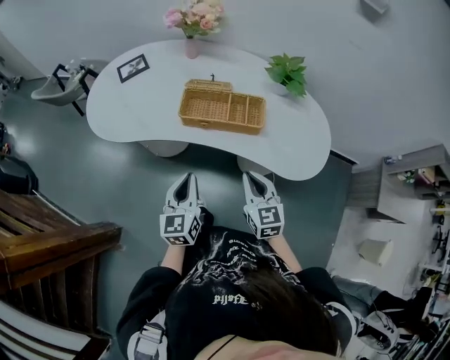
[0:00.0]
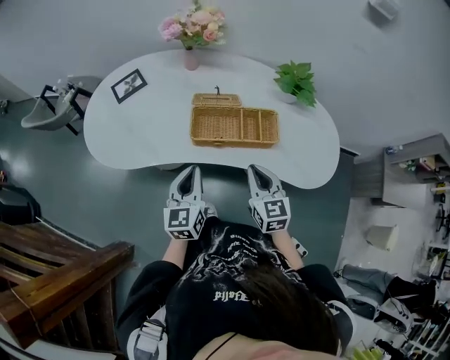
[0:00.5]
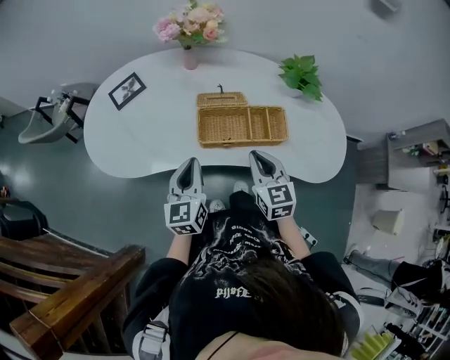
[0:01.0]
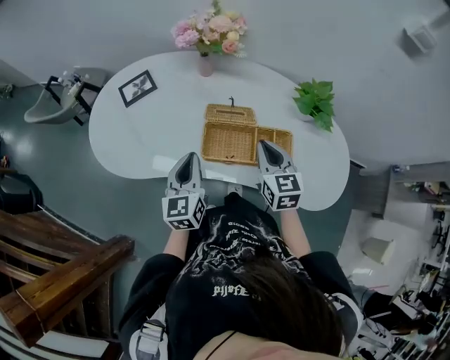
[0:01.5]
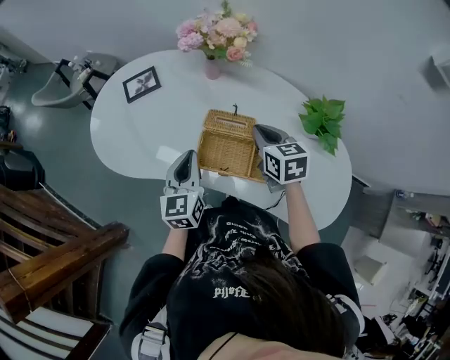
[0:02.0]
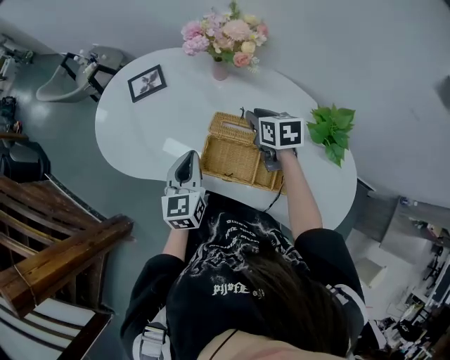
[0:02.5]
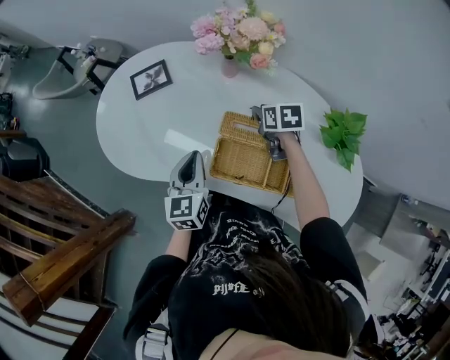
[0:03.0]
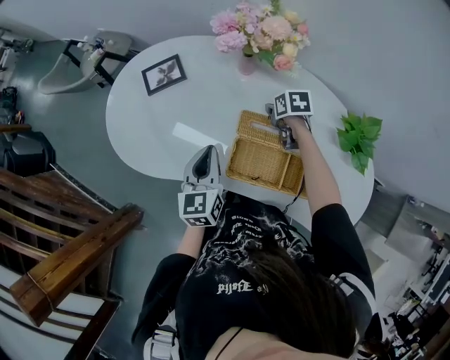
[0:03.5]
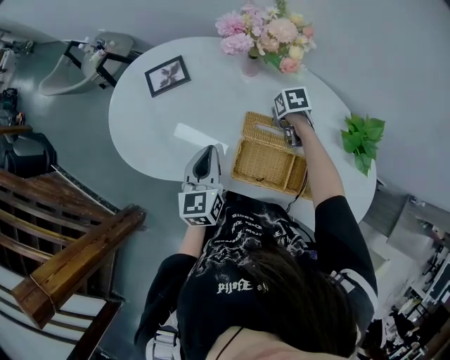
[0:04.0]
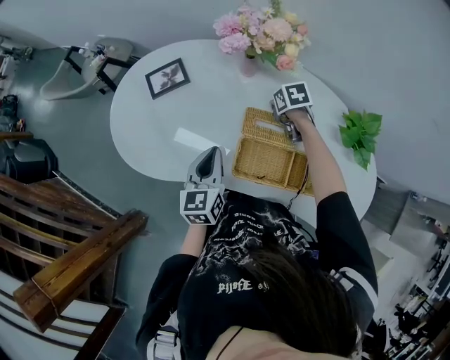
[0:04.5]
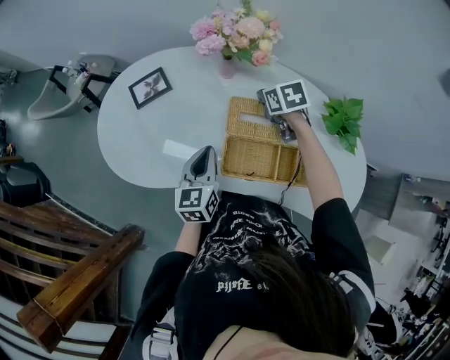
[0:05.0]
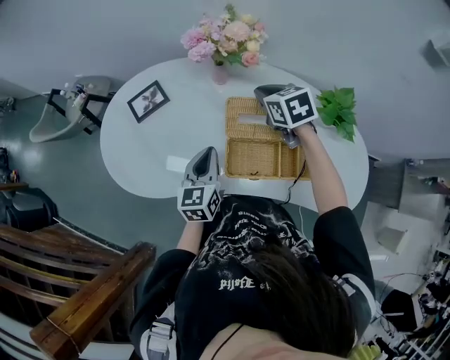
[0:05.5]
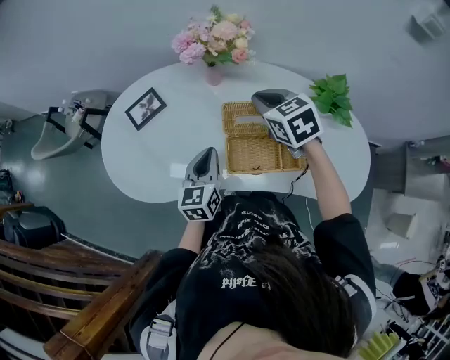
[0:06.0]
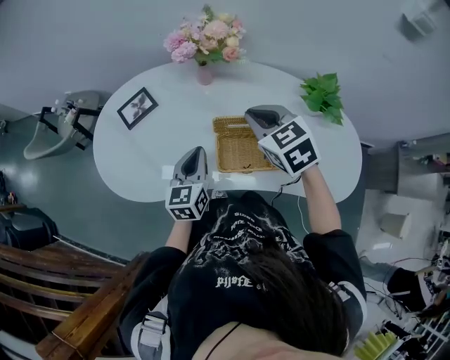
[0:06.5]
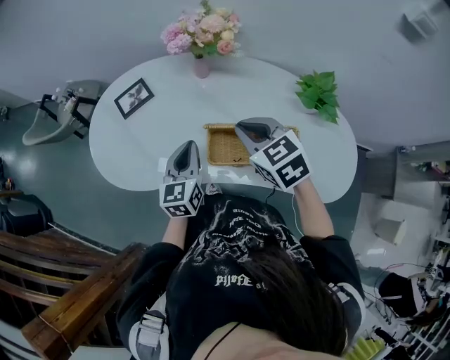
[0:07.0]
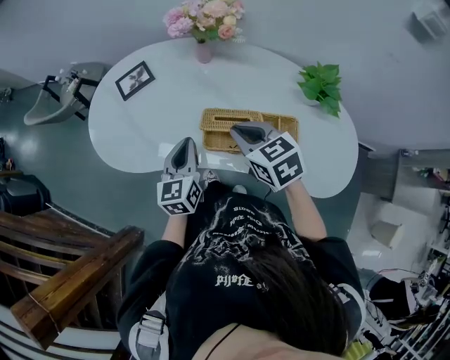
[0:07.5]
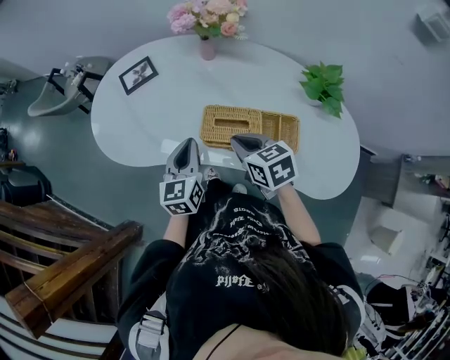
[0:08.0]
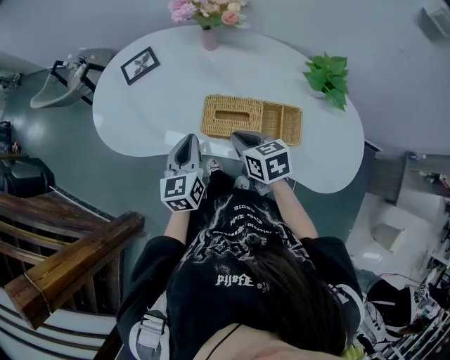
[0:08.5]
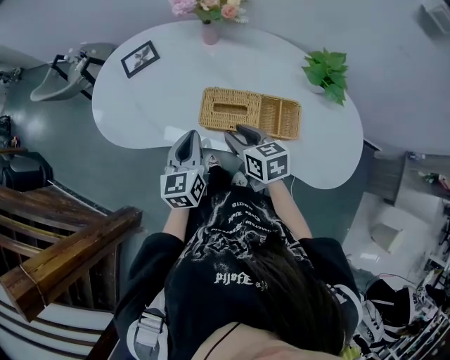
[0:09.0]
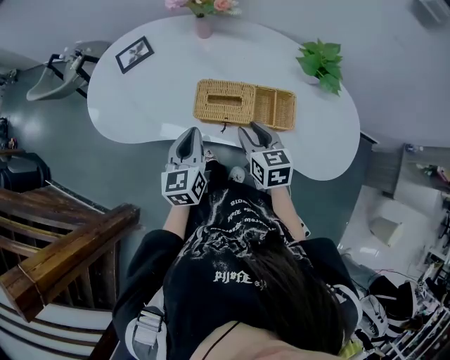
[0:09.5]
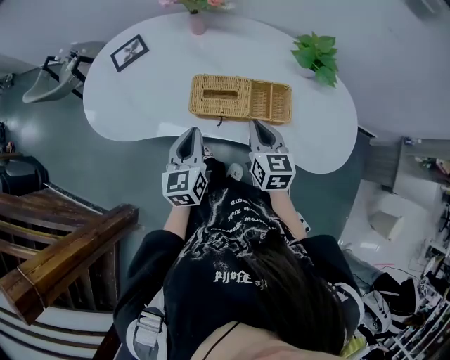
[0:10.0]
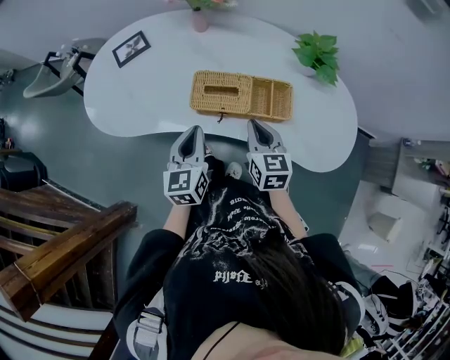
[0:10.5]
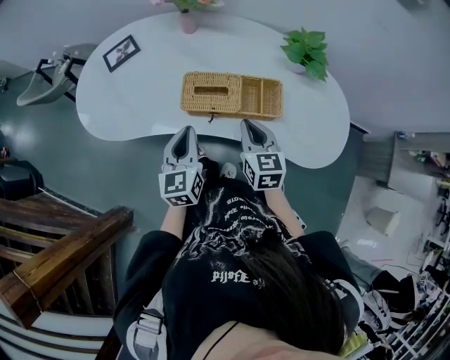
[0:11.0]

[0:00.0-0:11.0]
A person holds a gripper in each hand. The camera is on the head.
0:00.0 to 0:02.0: The two grippers go roughly 30 cm forward.
0:02.0 to 0:03.5: The left gripper travels forward by approximately 5 cm, while the right gripper moves forward and downward, about 20 cm, turns by approximately 30 degrees, and opens up.
0:03.5 to 0:05.5: The right gripper travels upward by about 20 cm, turns by some 30 degrees, and closes its fingers.
0:05.5 to 0:07.5: The left gripper travels backward by some 5 cm. The right gripper is displaced backward by approximately 20 cm.
0:07.5 to 0:09.0: The right gripper goes roughly 10 cm downward and backward, and opens its fingers. The left gripper travels backward by some 5 cm.
0:09.0 to 0:11.0: The left gripper ends up approximately 5 cm from where it was. The right gripper shifts roughly 10 cm to the right and backward, changes its angle by some 30 degrees, and closes up.

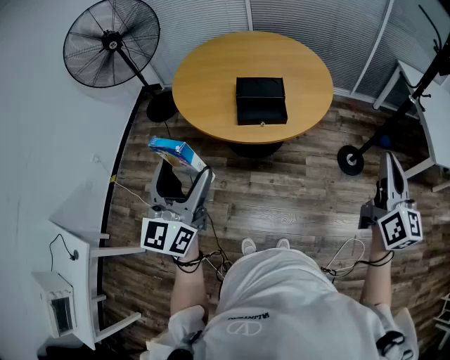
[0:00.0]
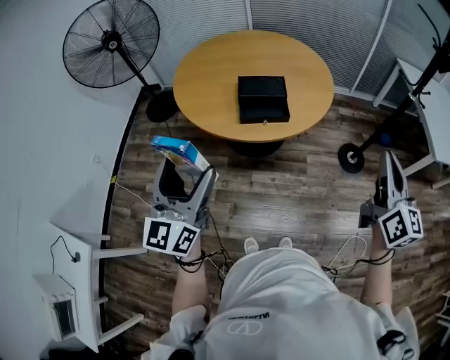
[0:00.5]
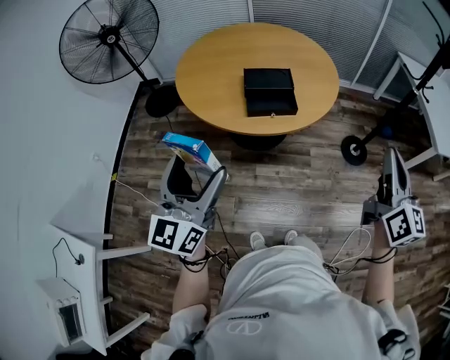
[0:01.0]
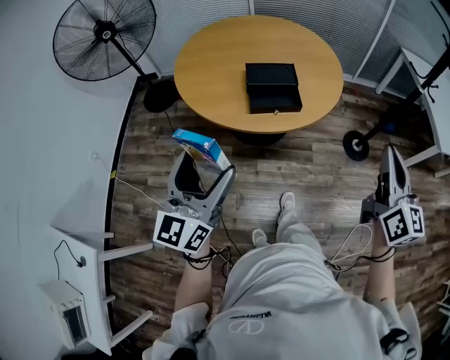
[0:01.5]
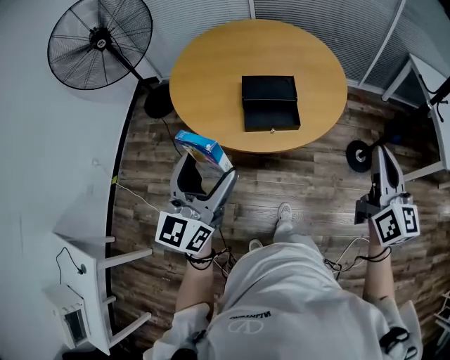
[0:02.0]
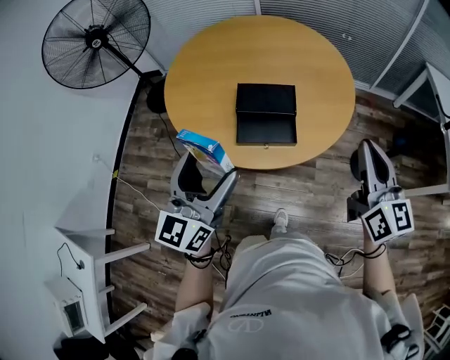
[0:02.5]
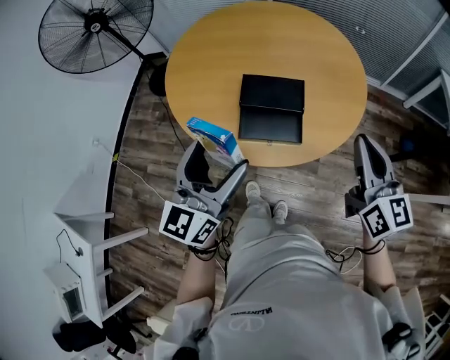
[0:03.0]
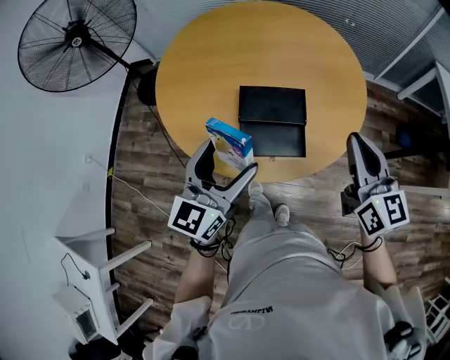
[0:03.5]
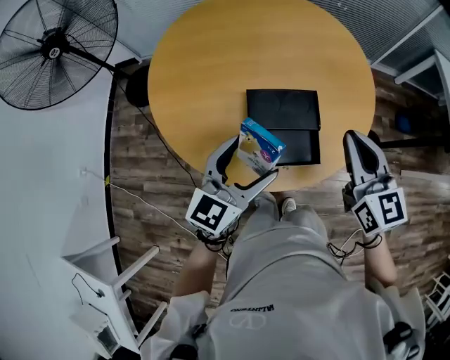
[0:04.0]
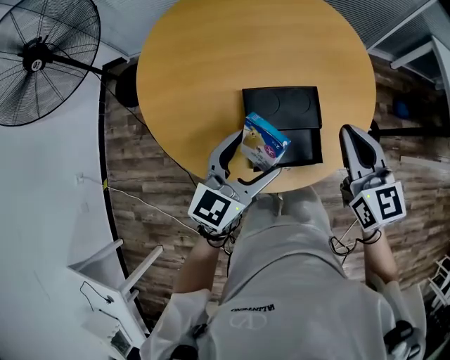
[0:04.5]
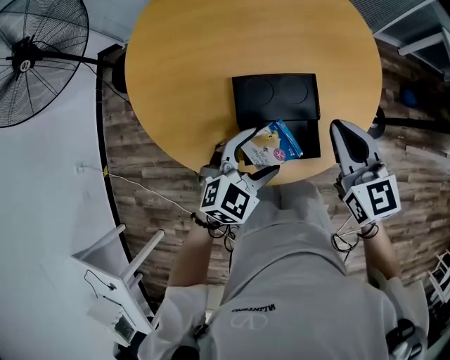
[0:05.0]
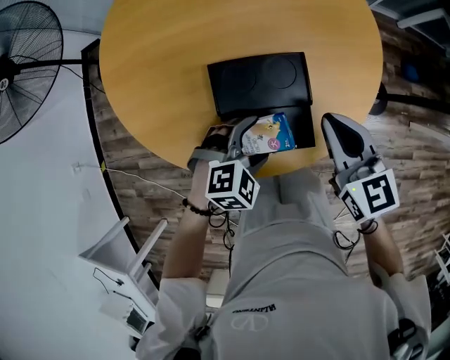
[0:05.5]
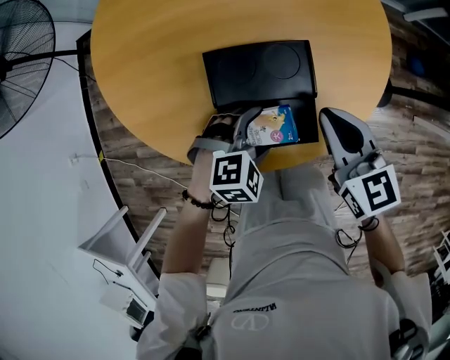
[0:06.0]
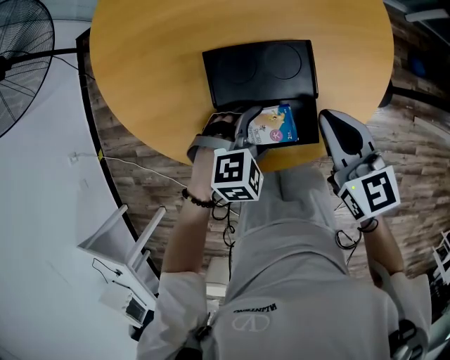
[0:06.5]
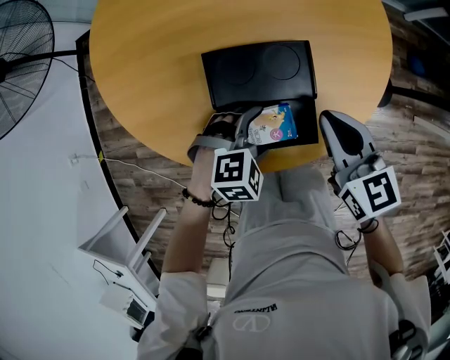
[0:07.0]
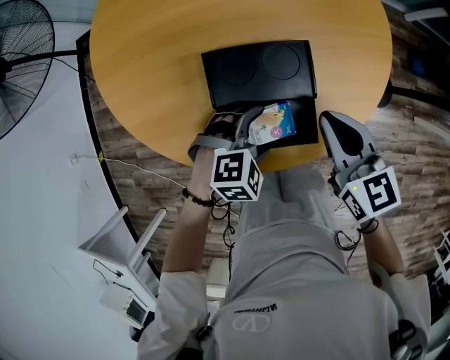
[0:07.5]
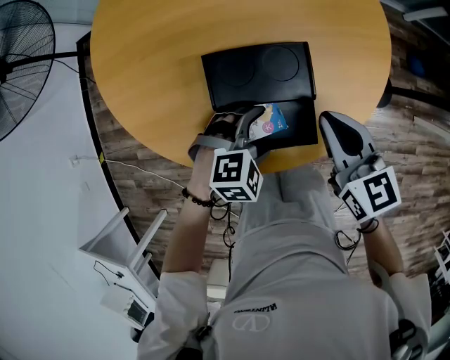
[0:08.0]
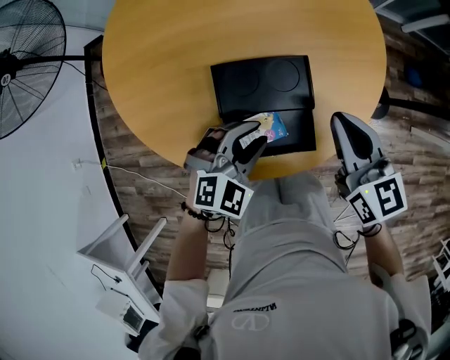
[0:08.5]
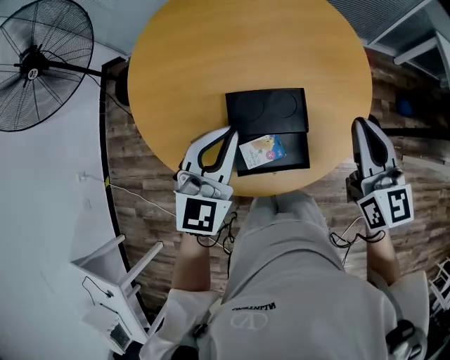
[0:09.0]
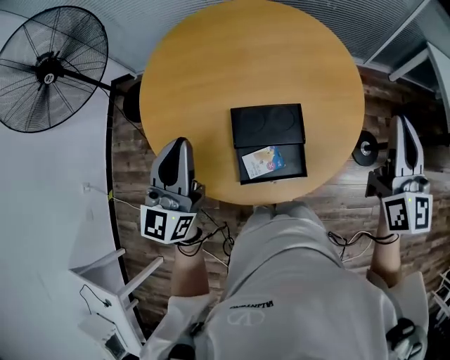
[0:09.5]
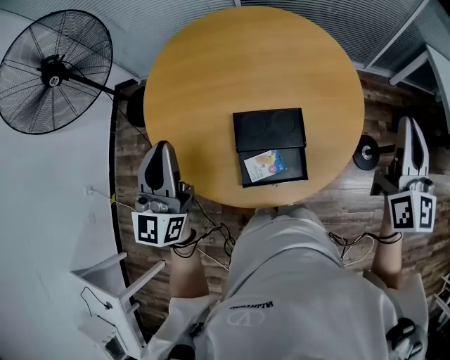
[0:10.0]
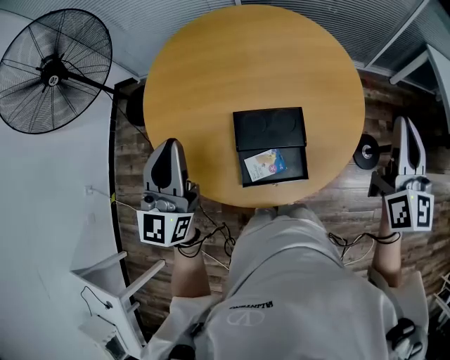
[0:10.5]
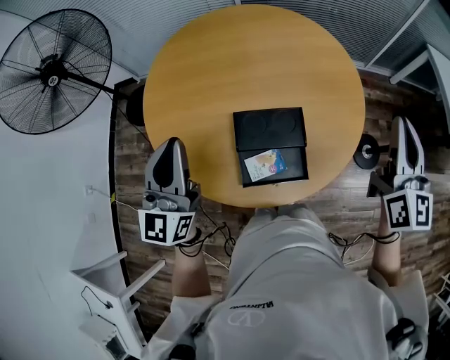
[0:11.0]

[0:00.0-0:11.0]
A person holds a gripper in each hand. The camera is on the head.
0:00.0 to 0:02.0: The right gripper is displaced forward and to the left by roughly 15 cm. The left gripper travels forward by some 15 cm.
0:02.0 to 0:03.5: The two grippers go roughly 25 cm forward.
0:03.5 to 0:05.5: The right gripper goes about 20 cm downward, forward and to the left, while the left gripper goes roughly 25 cm downward, and tilts its fingers some 50 degrees downward.
0:05.5 to 0:07.5: There are only small adjustments of the grippers.
0:07.5 to 0:09.0: The right gripper shifts approximately 15 cm upward, and turns by roughly 20 degrees, while the left gripper moves upward, some 25 cm, tilts its fingers some 50 degrees upward, and closes its fingers.
0:09.0 to 0:11.0: The left gripper heads to the left and upward, covering about 15 cm, and swivels approximately 40 degrees. Meanwhile the right gripper goes roughly 15 cm upward and to the right, and changes its angle by about 20 degrees.

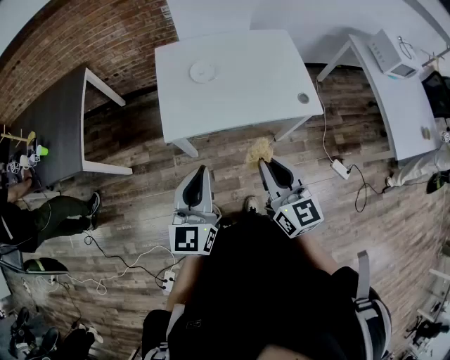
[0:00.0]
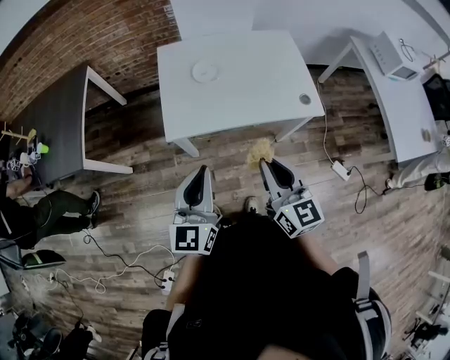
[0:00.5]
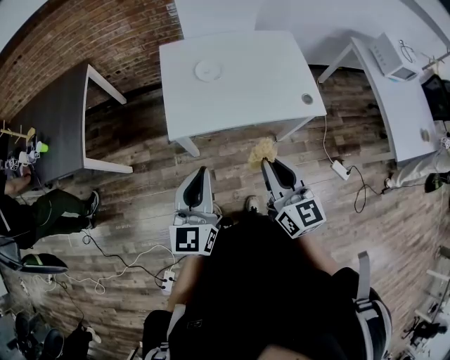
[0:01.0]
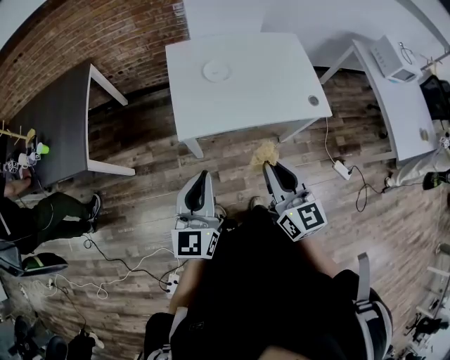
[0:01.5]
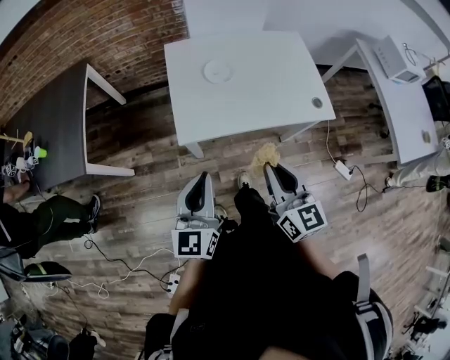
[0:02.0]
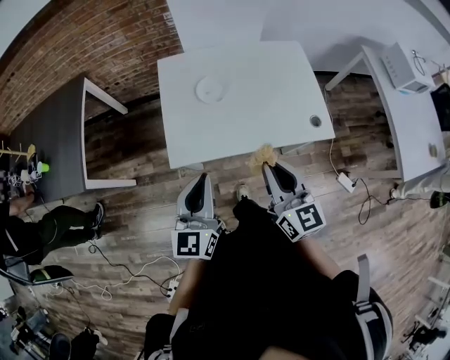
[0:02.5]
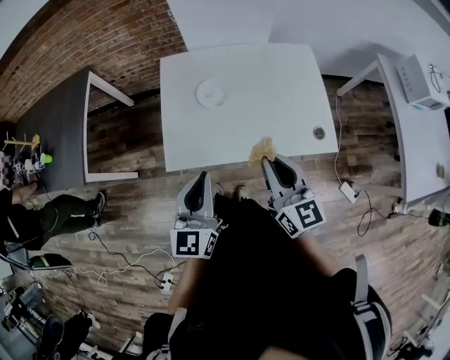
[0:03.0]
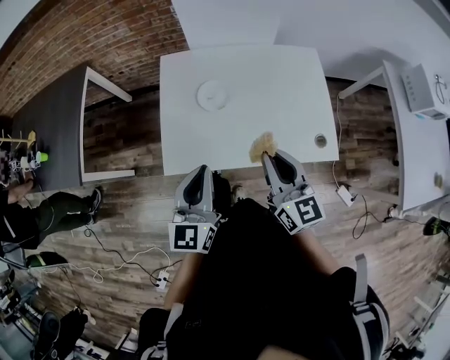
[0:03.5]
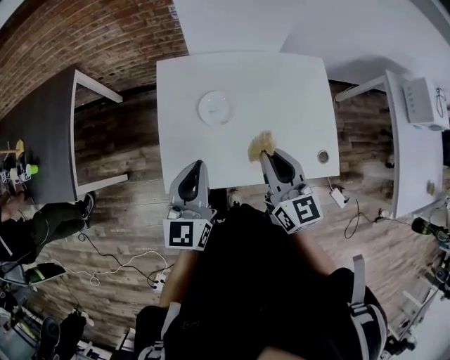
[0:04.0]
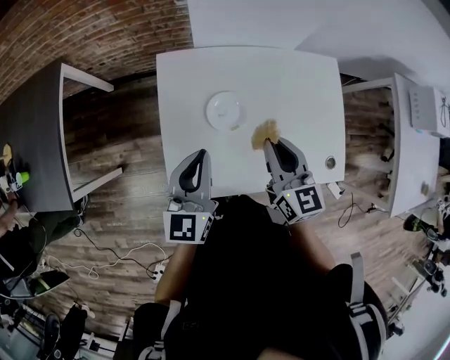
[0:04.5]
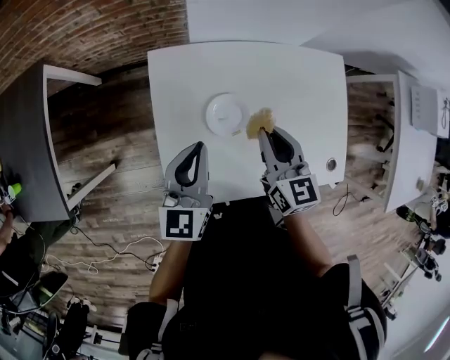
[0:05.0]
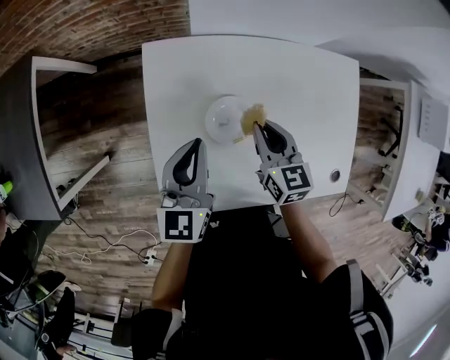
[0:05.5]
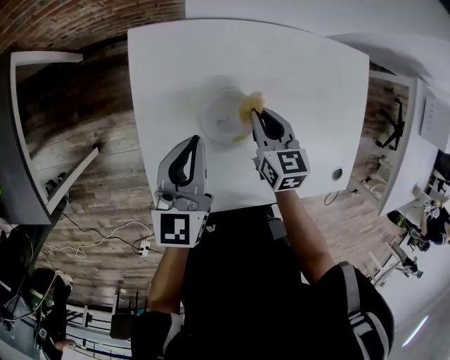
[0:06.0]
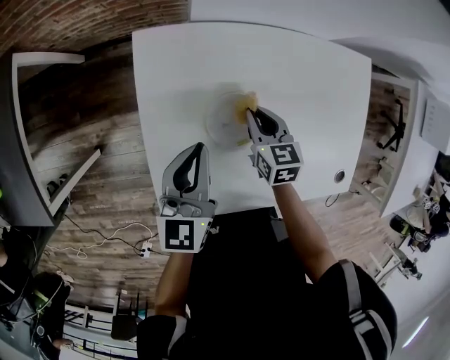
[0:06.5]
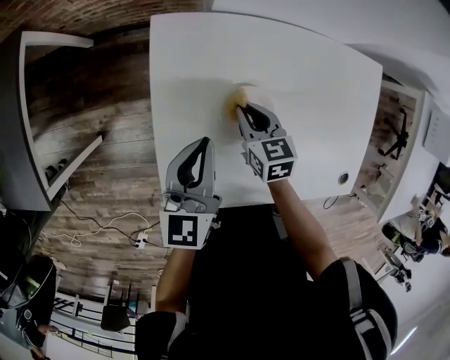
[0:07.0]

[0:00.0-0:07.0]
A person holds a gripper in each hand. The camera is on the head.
0:00.0 to 0:02.0: The grippers both shift to the left by approximately 5 cm.
0:02.0 to 0:03.5: The grippers both shift forward and to the right by approximately 20 cm.
0:03.5 to 0:05.0: Both grippers move forward, roughly 25 cm.
0:05.0 to 0:07.0: The left gripper moves downward, approximately 10 cm. The right gripper heads downward, covering roughly 20 cm, and changes its angle by approximately 30 degrees.
